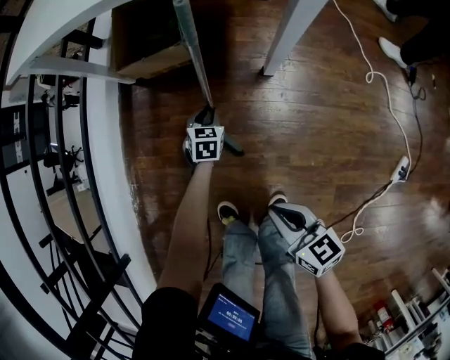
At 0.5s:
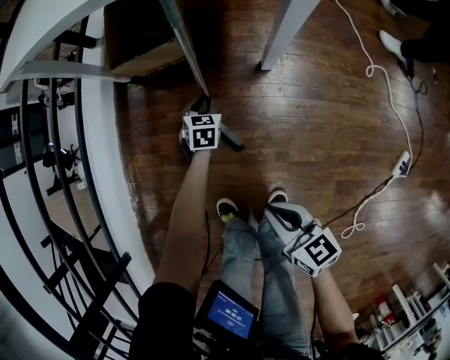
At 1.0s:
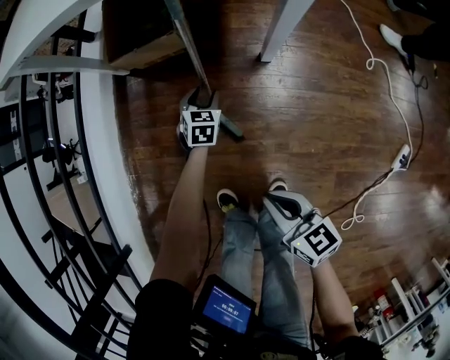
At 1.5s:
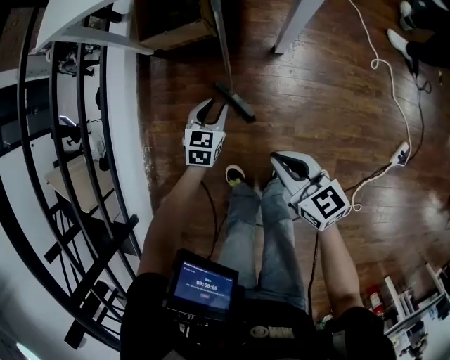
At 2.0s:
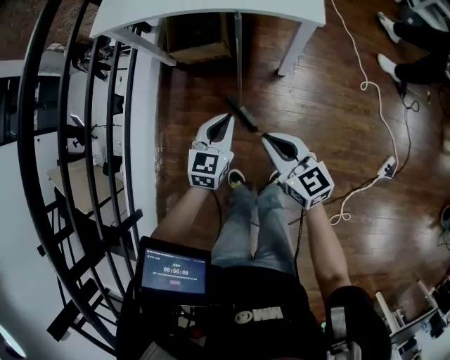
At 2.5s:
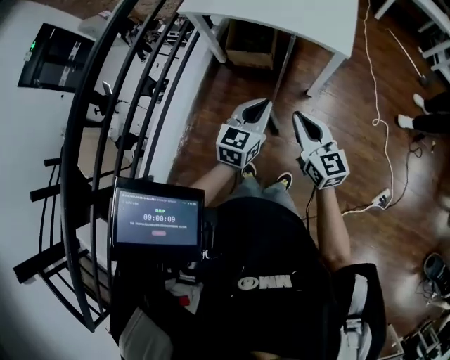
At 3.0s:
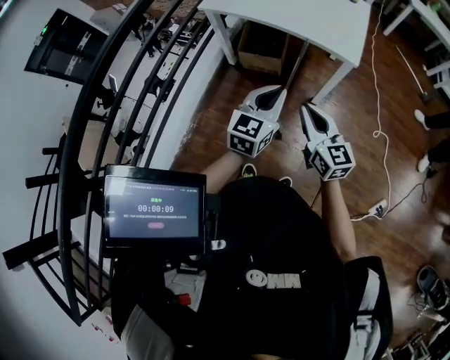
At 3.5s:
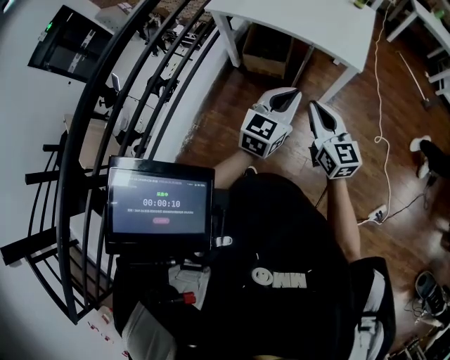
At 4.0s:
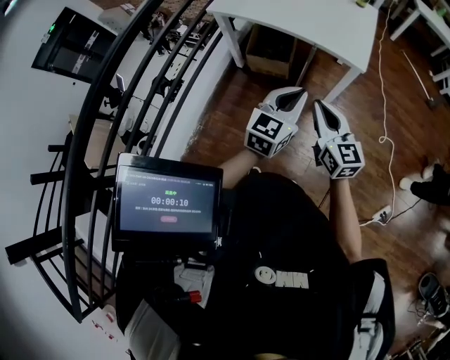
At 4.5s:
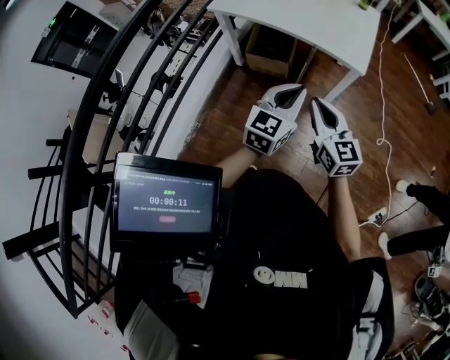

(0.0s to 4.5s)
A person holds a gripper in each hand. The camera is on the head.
0.0s - 2.0s: The left gripper shifts roughly 40 cm upward, turns by about 20 degrees, and opens, then closes again; the right gripper moves upward, about 25 cm.
2.0s - 4.5s: Both grippers move upward, about 20 cm.

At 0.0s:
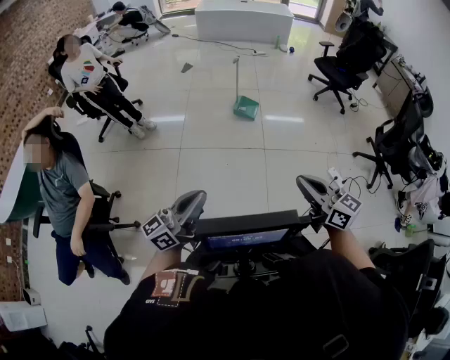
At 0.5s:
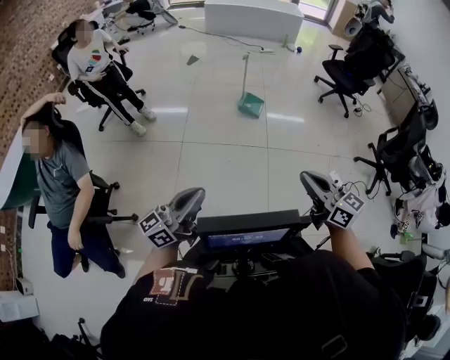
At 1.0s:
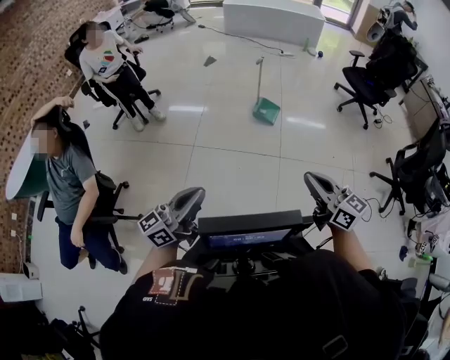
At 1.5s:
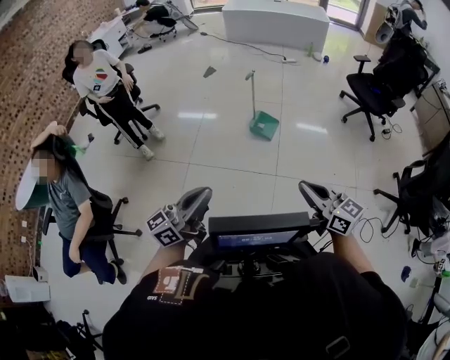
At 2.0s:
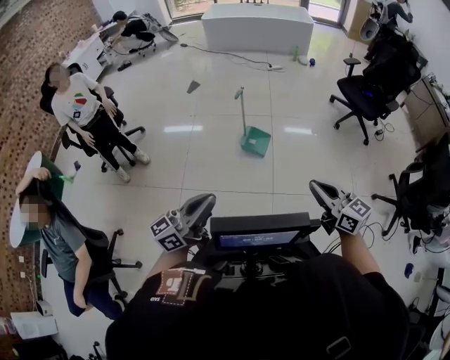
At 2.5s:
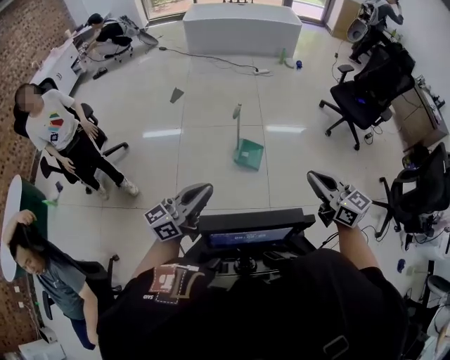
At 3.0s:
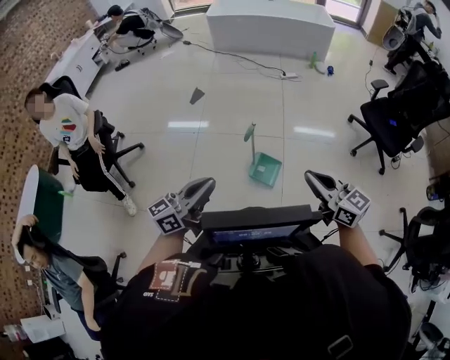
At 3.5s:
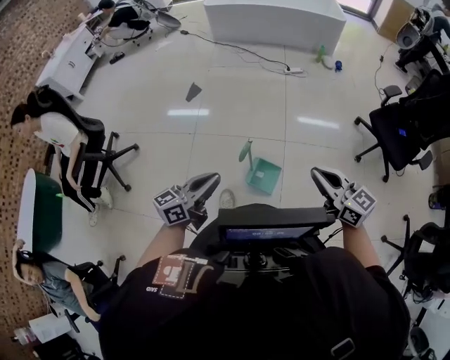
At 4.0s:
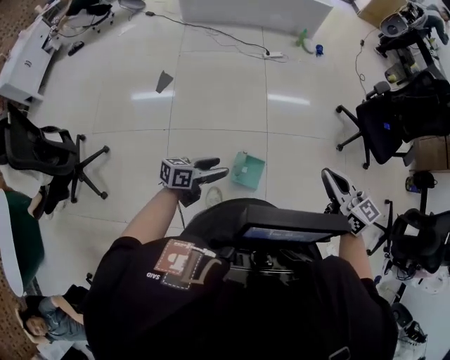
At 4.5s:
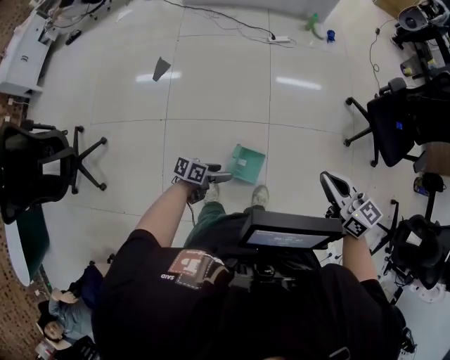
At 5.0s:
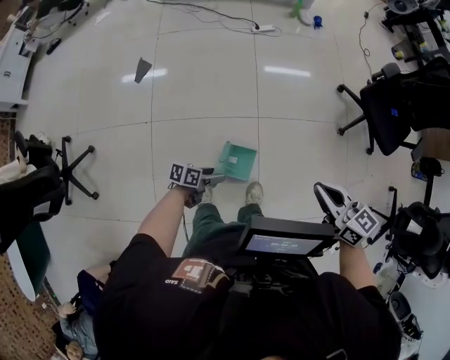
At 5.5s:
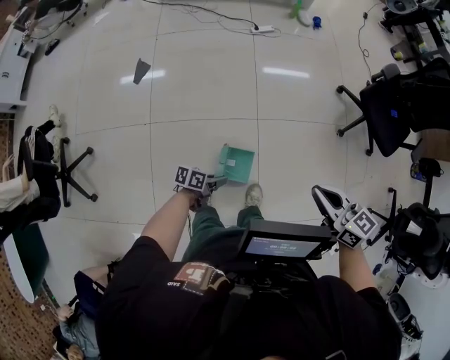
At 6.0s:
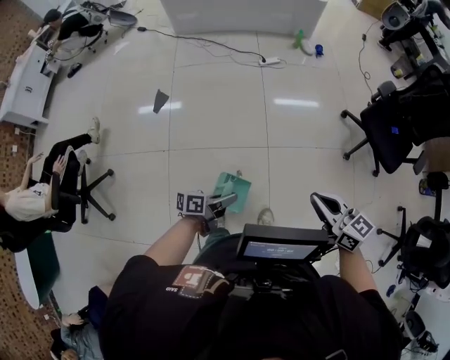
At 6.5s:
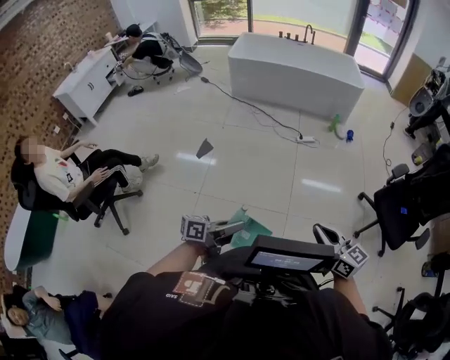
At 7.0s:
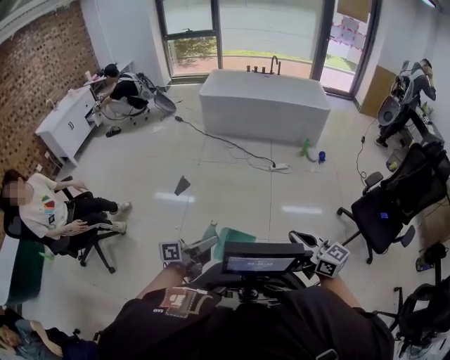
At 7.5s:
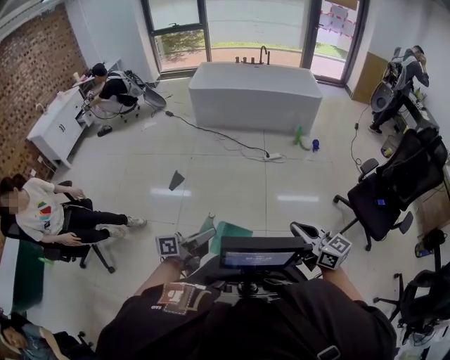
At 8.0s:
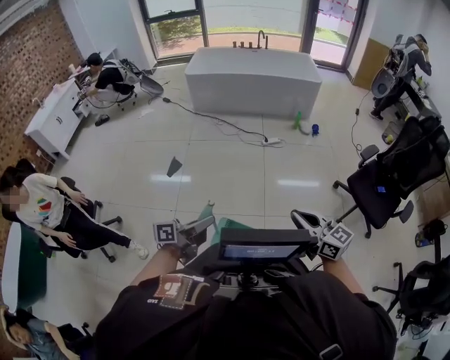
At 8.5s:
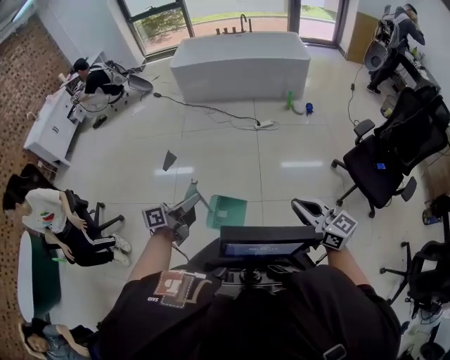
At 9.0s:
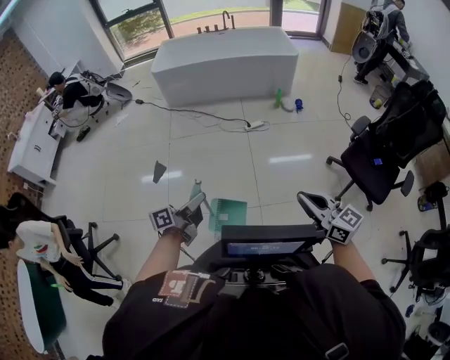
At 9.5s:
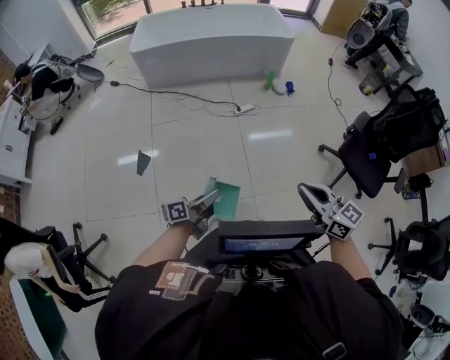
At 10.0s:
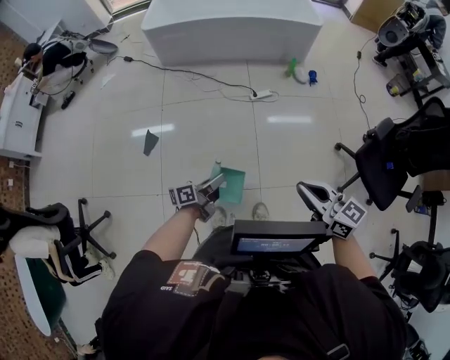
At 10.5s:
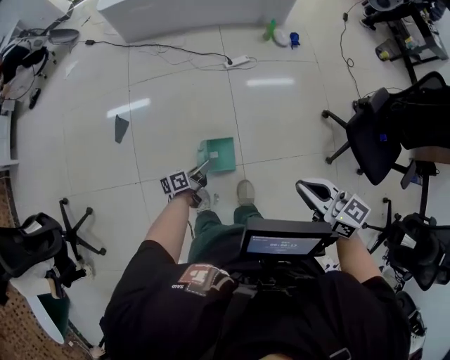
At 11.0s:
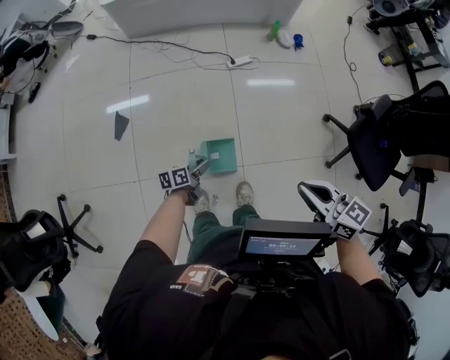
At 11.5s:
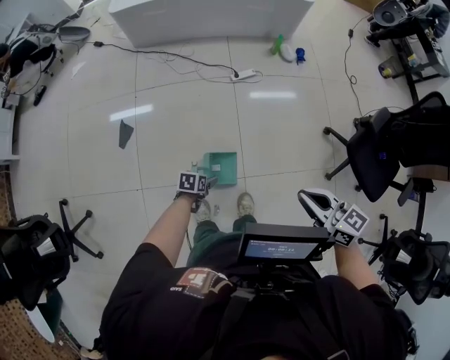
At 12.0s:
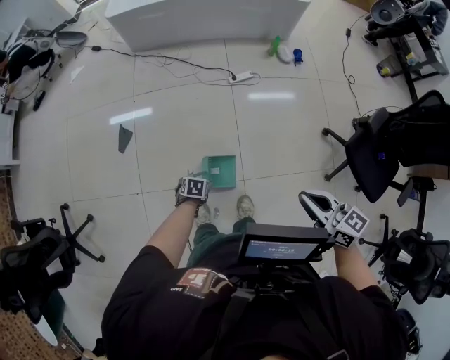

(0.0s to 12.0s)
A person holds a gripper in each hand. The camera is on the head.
0.0s - 2.0s: The two grippers travel together, forward, approximately 80 cm.
2.0s - 4.0s: Both grippers are carried forward, roughly 1.5 m. The left gripper points its fingers some 30 degrees further downward, and opens its fingers.
4.0s - 6.0s: The left gripper reaches roughly 30 cm downward, then returns, rotates approximately 20 degrees, and closes its fingers. Meanwhile the right gripper changes place by roughly 20 cm.
6.0s - 8.0s: The left gripper heads upward, covering roughly 30 cm, and turns by some 30 degrees. The right gripper is displaced upward and backward by approximately 20 cm.
8.0s - 10.0s: The two grippers travel together, forward, some 60 cm. The left gripper moves downward, approximately 30 cm.
10.0s - 12.0s: The right gripper moves about 20 cm, while the left gripper travels downward by approximately 30 cm, angles its fingers downward, by some 70 degrees, and opens up.

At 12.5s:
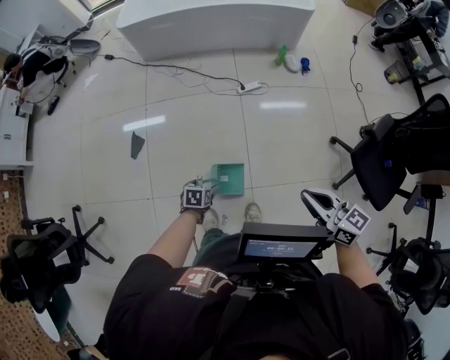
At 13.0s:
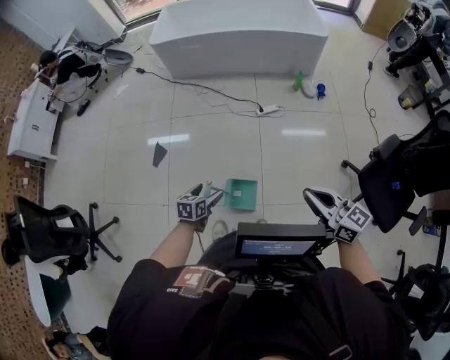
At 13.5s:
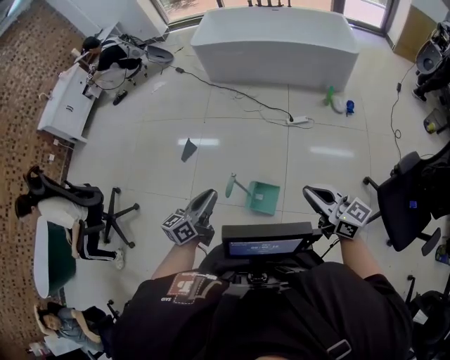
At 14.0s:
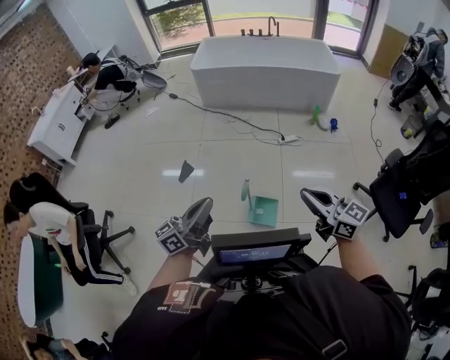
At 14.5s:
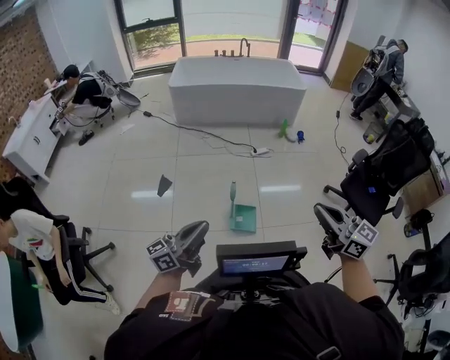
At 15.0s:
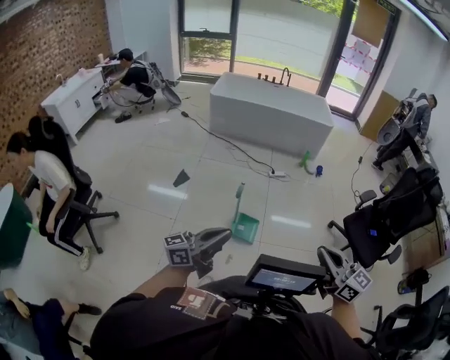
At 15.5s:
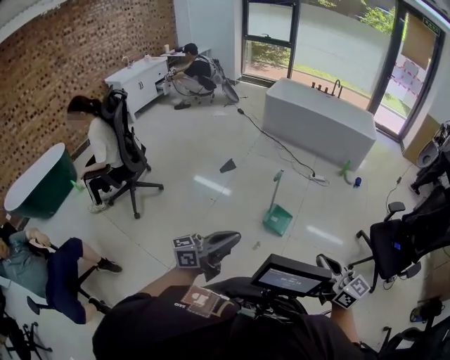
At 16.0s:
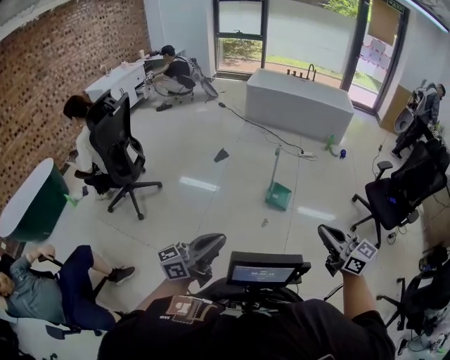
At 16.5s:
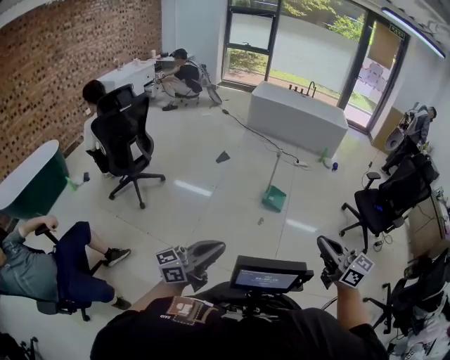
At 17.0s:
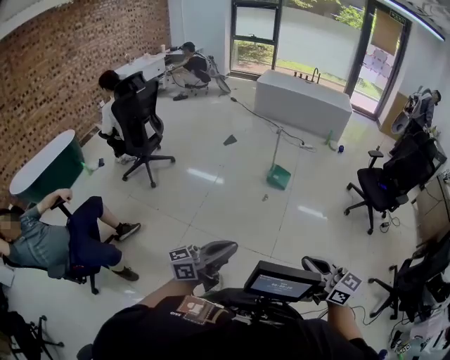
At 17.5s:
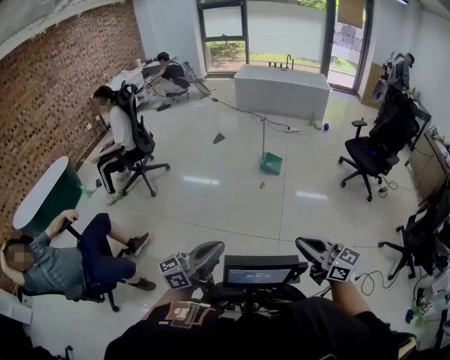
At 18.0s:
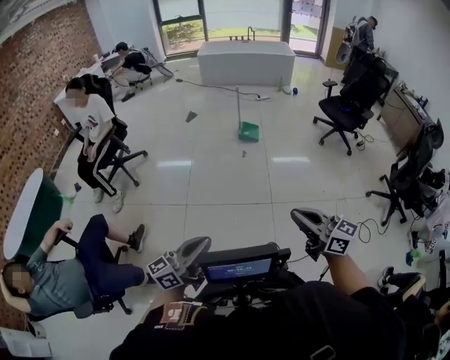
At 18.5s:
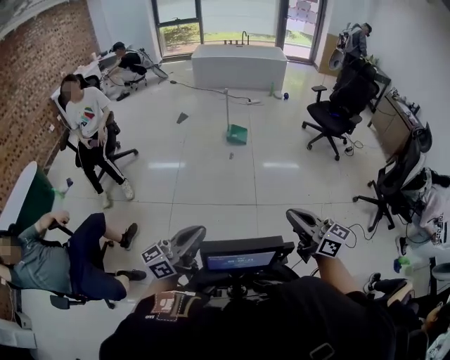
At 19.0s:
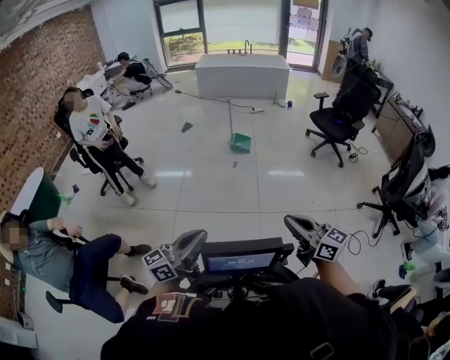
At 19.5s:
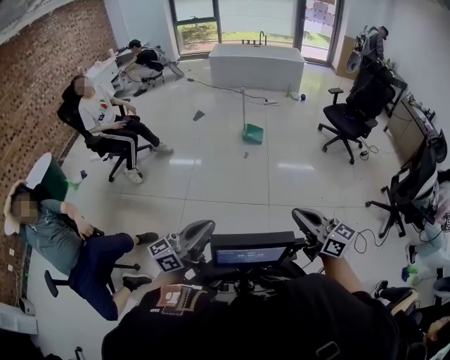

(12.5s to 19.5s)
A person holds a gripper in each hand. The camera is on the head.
12.5s - 14.5s: The pair of grippers is taken backward and to the left, some 70 cm. The right gripper moves upward, approximately 35 cm, and changes its angle by about 20 degrees; the left gripper goes some 60 cm upward, angles its fingers upward, by approximately 80 degrees, and closes.
14.5s - 16.0s: The two grippers travel together, backward, about 1 m.
16.0s - 17.5s: Both grippers are carried backward, approximately 80 cm.
17.5s - 19.5s: The left gripper moves left and right over about 20 cm, changing direction 2 times, while the right gripper shifts approximately 15 cm backward.

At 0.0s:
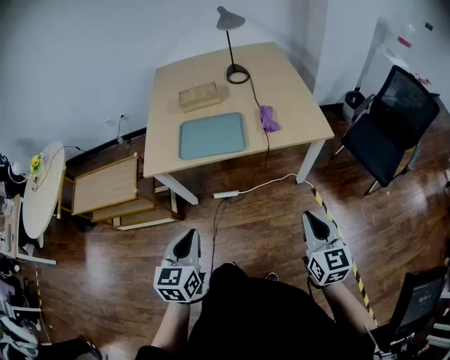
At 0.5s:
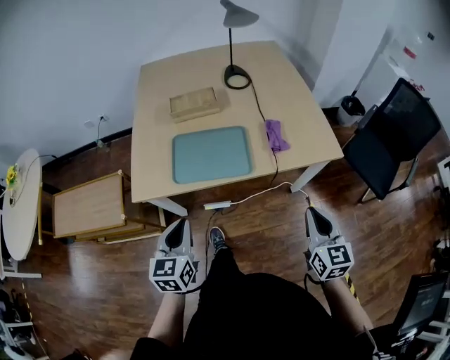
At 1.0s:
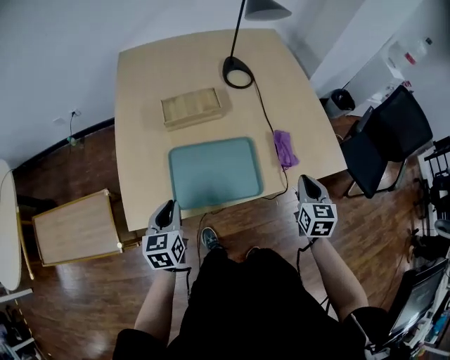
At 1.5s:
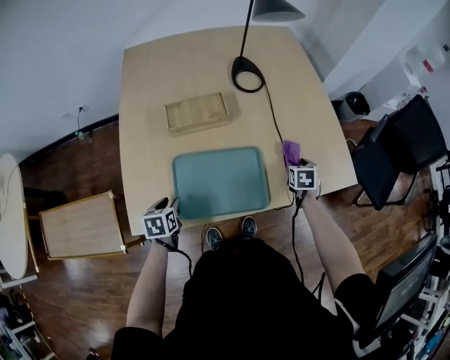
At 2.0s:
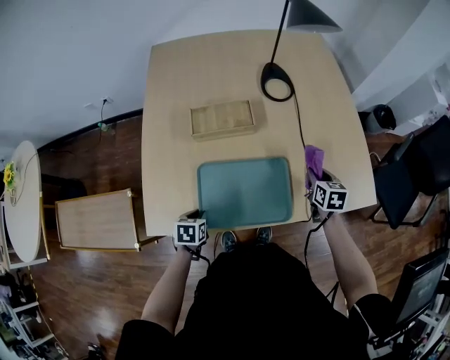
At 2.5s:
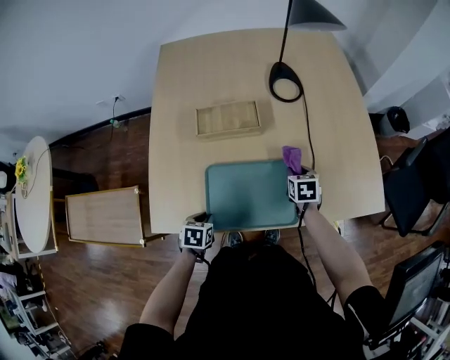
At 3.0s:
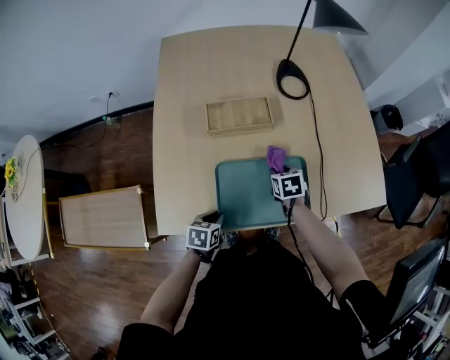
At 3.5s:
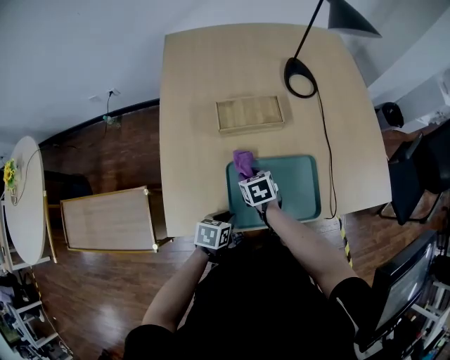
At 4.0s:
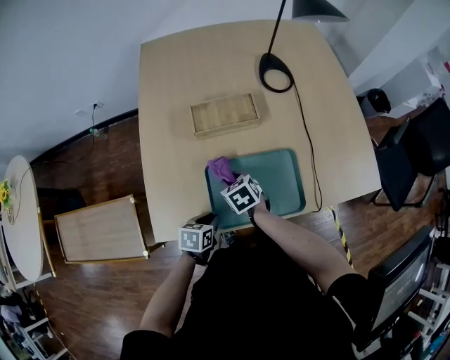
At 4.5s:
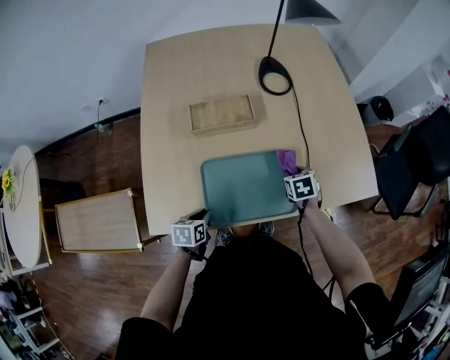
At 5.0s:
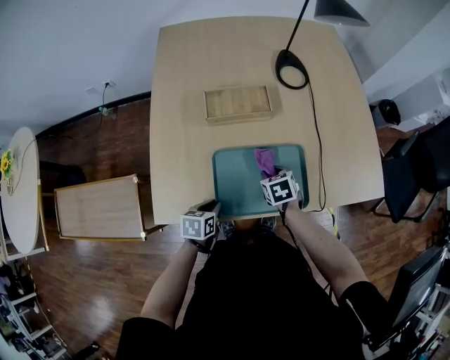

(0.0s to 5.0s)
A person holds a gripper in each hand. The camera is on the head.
0.0s - 2.5s: The left gripper is displaced forward, downward and to the left by about 50 cm, tips its fingers downward by roughly 40 degrees, and opens and closes again. The right gripper is displaced forward and downward by some 60 cm, tips its fingers downward by roughly 40 degrees, and opens up.
2.5s - 5.0s: The right gripper moves left and right over roughly 25 cm, changing direction 2 times.
